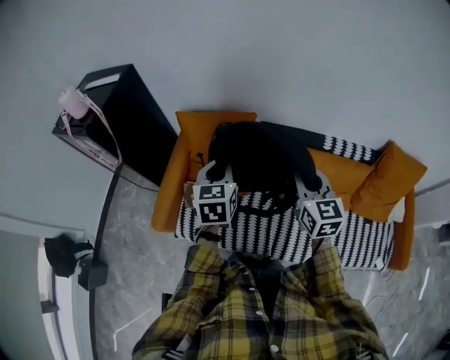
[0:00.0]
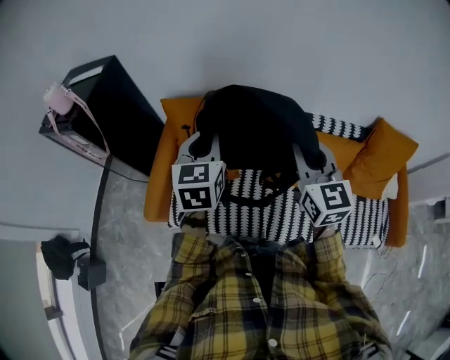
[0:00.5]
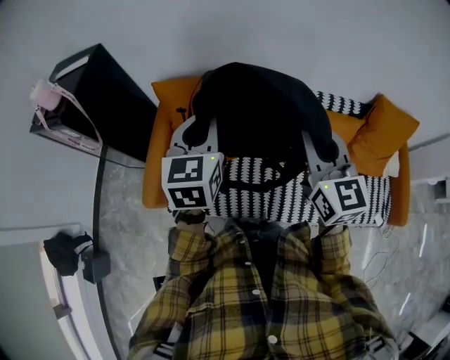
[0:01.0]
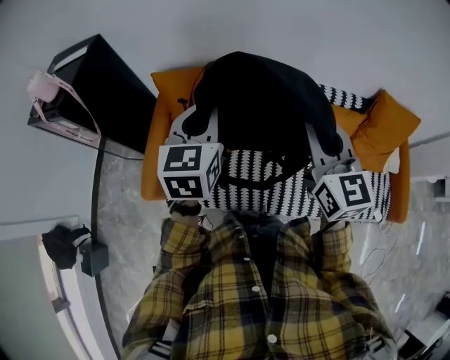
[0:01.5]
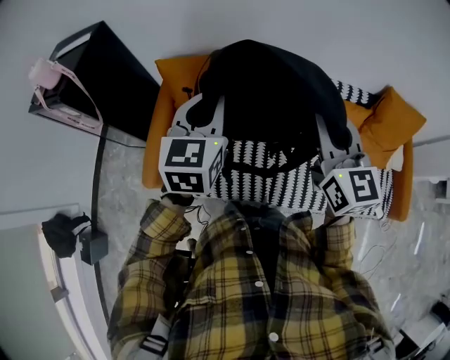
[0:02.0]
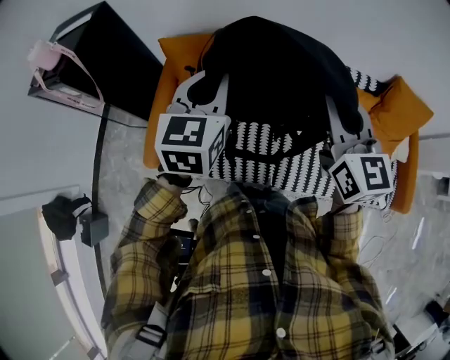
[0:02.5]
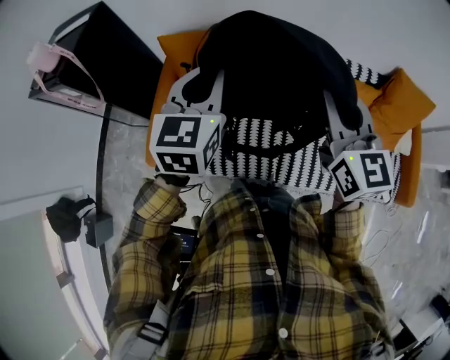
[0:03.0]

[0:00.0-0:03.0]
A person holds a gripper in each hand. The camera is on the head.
0:00.0 to 0:01.5: The right gripper heads upward and backward, covering some 10 cm. Meanwhile the left gripper is displaced upward by approximately 10 cm.
0:01.5 to 0:03.0: The grippers move only a little.

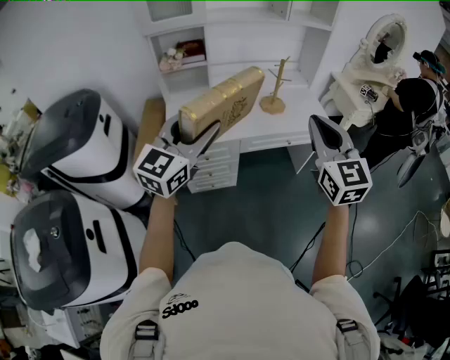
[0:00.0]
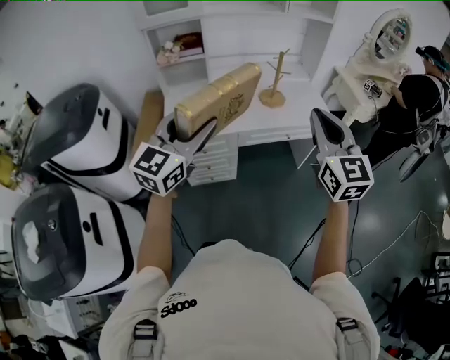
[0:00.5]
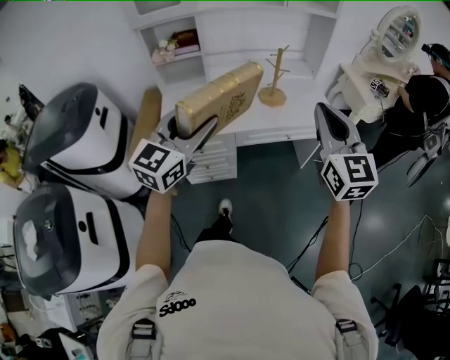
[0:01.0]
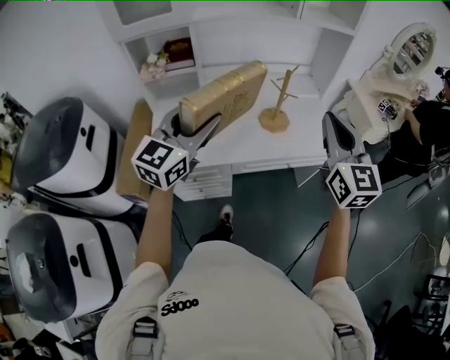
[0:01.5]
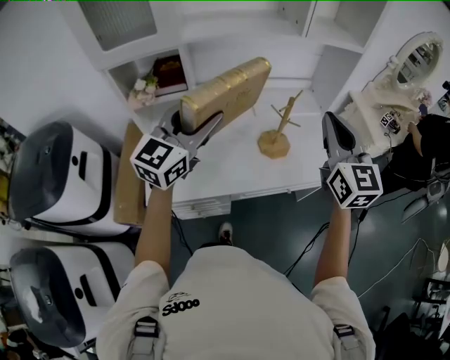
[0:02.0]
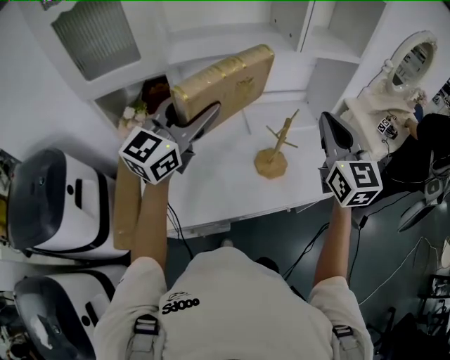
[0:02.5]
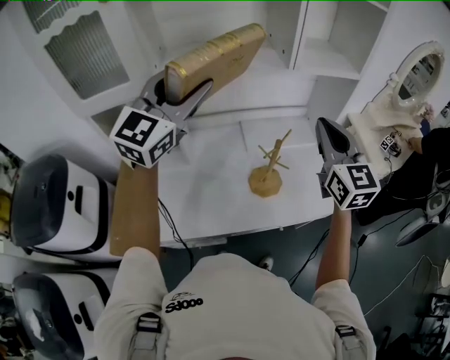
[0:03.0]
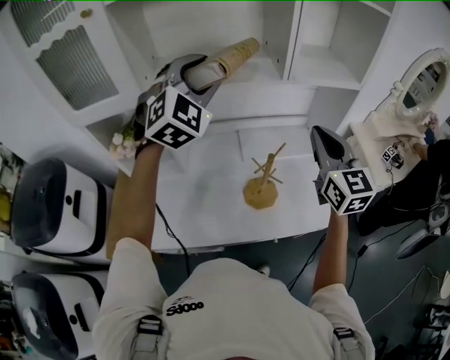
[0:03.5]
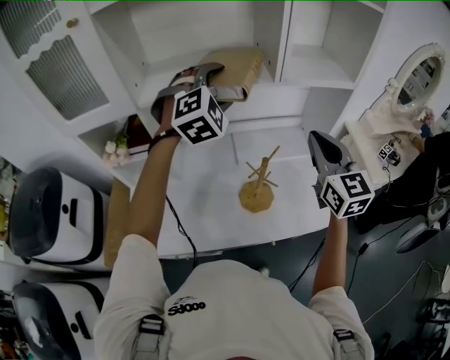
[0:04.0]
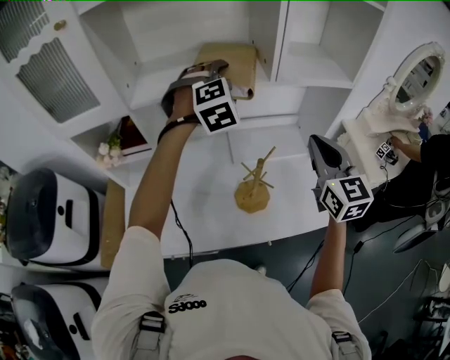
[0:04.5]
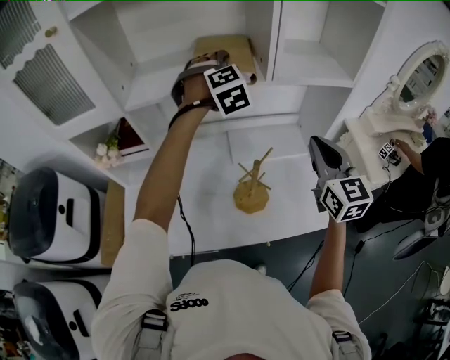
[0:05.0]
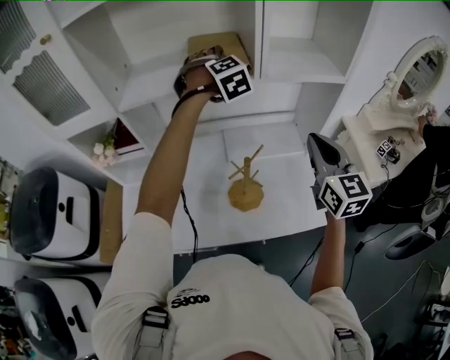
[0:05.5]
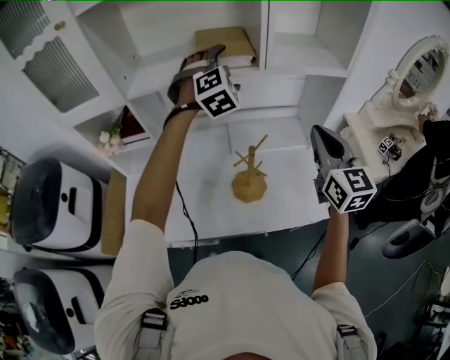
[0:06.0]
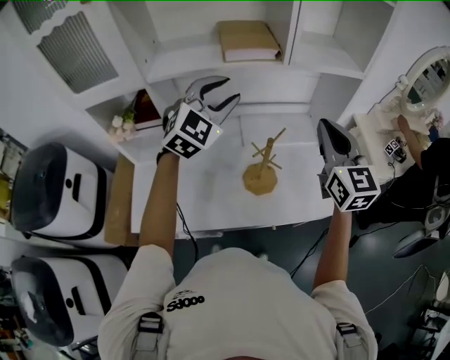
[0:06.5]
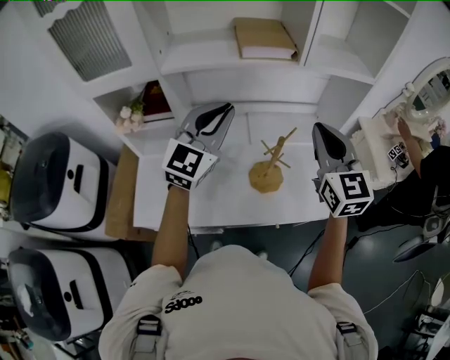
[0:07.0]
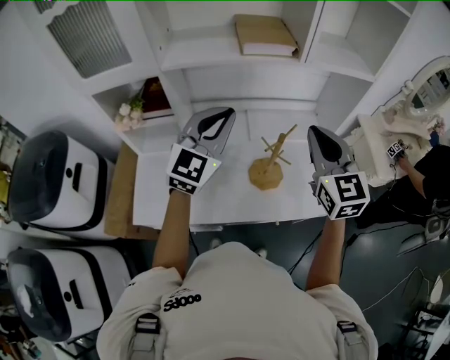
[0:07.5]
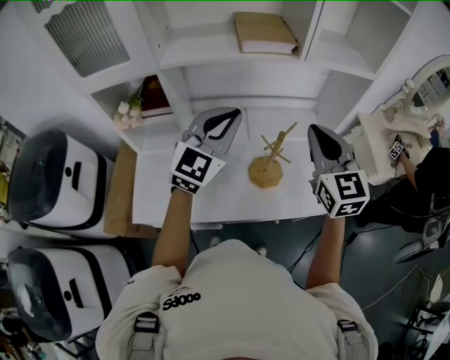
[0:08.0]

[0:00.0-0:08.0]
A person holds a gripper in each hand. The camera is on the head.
0:00.0 to 0:02.0: The two grippers go roughly 35 cm forward.
0:02.0 to 0:04.0: The right gripper heads forward, covering about 20 cm; the left gripper is displaced forward and to the right by some 30 cm, and twists approximately 50 degrees clockwise, seen from behind.
0:04.0 to 0:06.0: The left gripper shifts roughly 10 cm to the right and forward, while the right gripper moves approximately 5 cm.
0:06.0 to 0:08.0: The right gripper shifts about 10 cm to the left. The left gripper shifts about 20 cm backward and to the left, twists about 40 degrees counterclockwise, seen from behind, and closes.

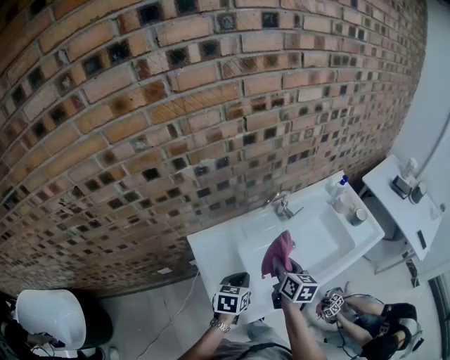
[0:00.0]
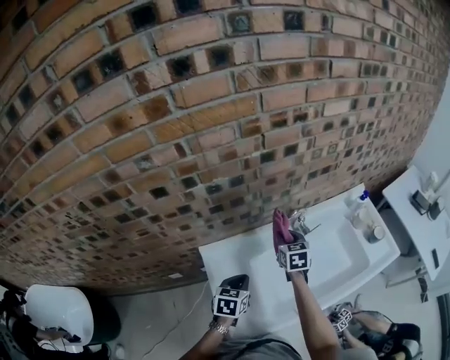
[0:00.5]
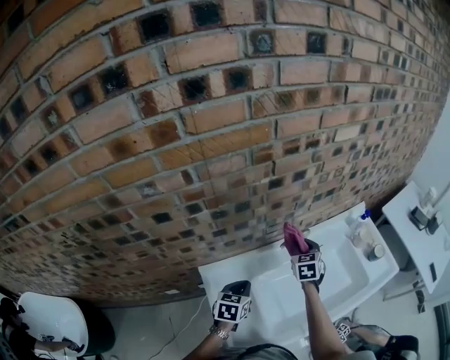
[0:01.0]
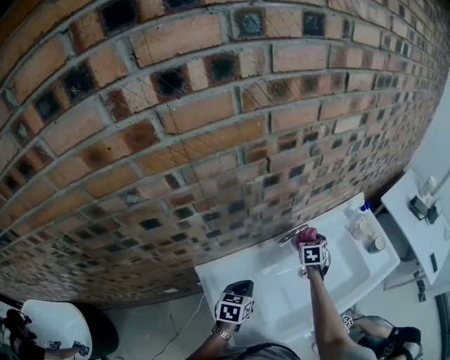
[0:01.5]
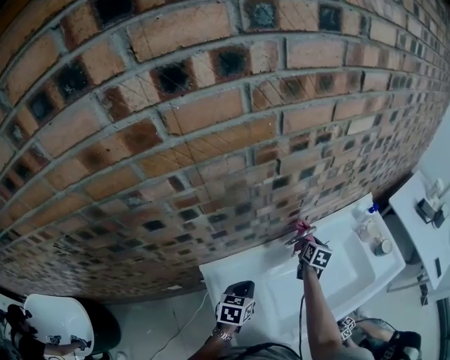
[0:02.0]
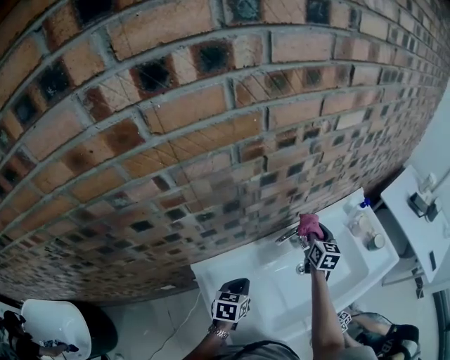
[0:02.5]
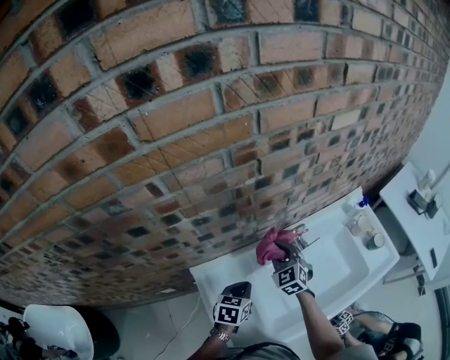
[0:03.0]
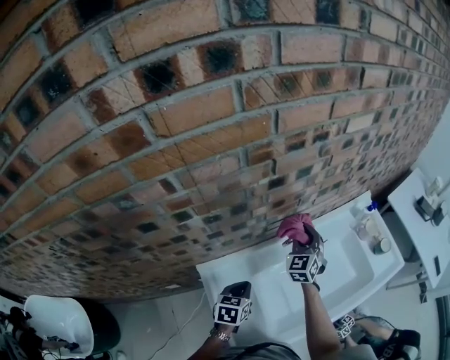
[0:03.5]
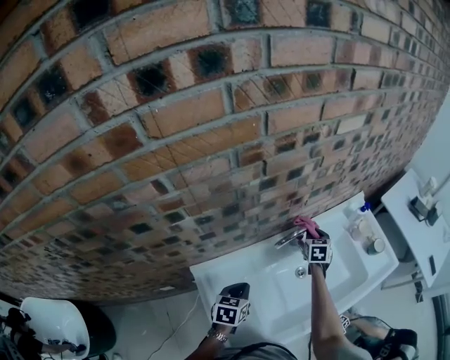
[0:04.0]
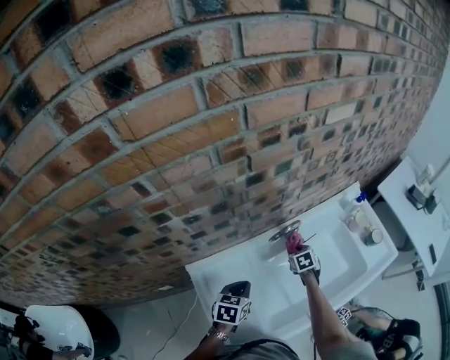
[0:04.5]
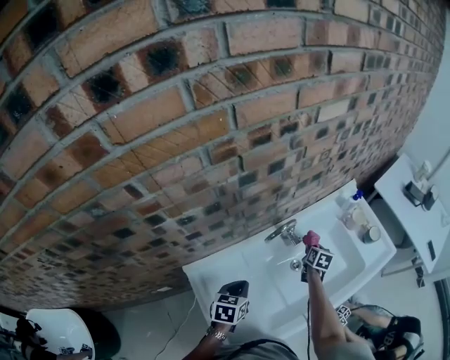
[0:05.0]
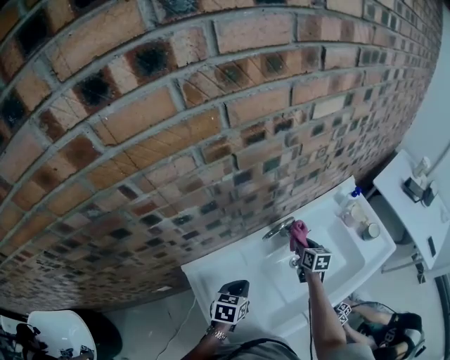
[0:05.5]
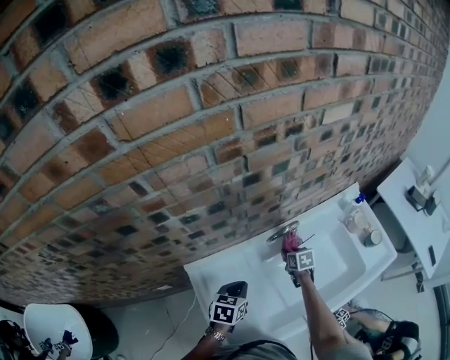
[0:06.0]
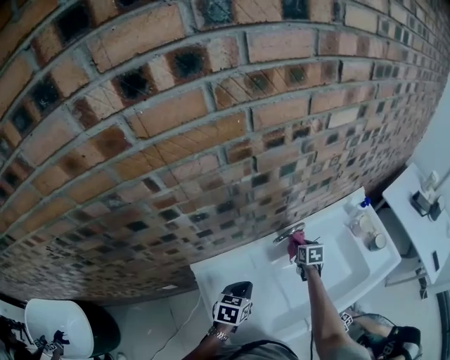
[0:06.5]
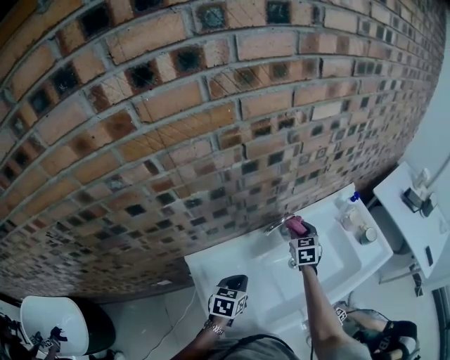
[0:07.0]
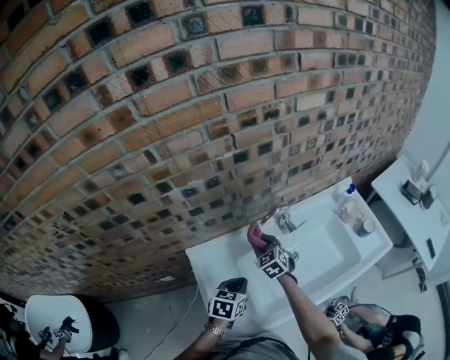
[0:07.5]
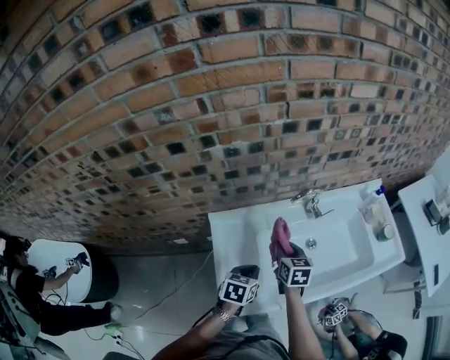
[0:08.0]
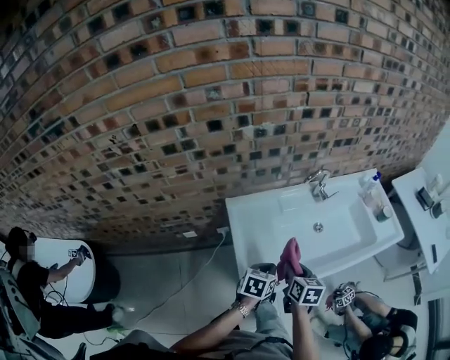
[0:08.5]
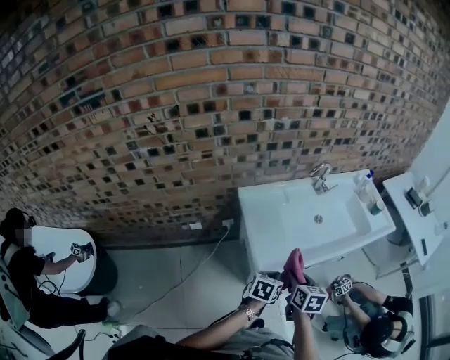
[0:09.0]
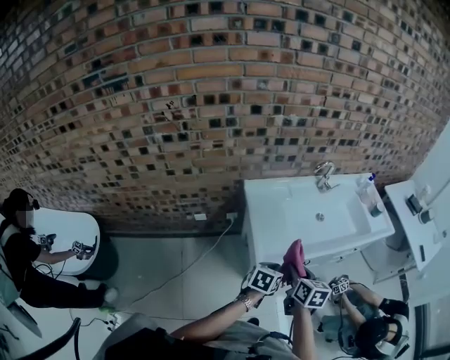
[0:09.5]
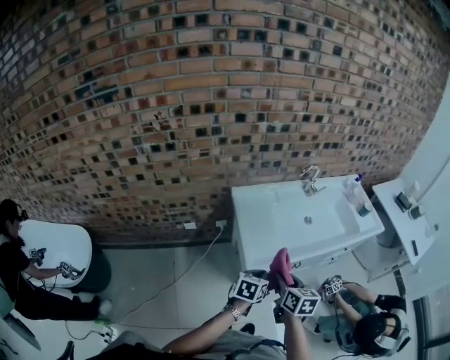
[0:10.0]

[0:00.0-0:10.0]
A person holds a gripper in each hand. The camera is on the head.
0:00.0 to 0:02.0: The right gripper is displaced forward by approximately 30 cm. The left gripper is displaced forward and to the left by about 15 cm.
0:02.0 to 0:04.0: The right gripper goes to the left and returns, approximately 10 cm each way, and rotates roughly 30 degrees.
0:04.0 to 0:06.0: The right gripper swings left and right, approximately 15 cm each way, with 2 reversals, and swivels approximately 30 degrees.
0:06.0 to 0:08.0: The right gripper travels backward, upward and to the left by roughly 25 cm. Meanwhile the left gripper heads backward, covering about 10 cm.
0:08.0 to 0:10.0: Both grippers travel together backward, approximately 35 cm.

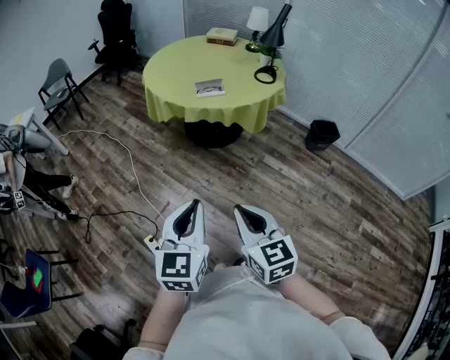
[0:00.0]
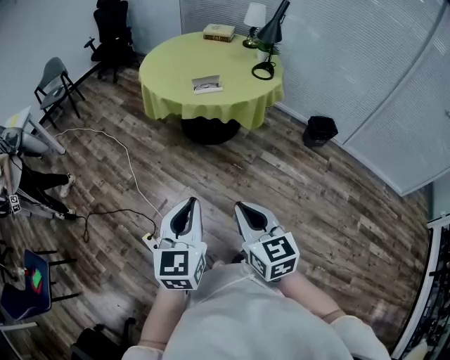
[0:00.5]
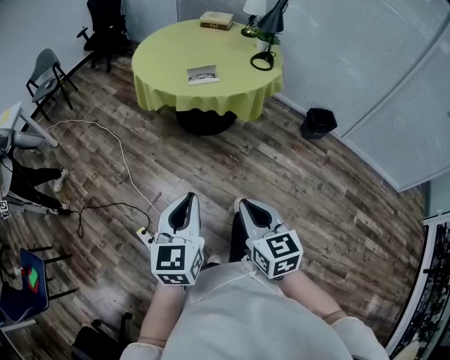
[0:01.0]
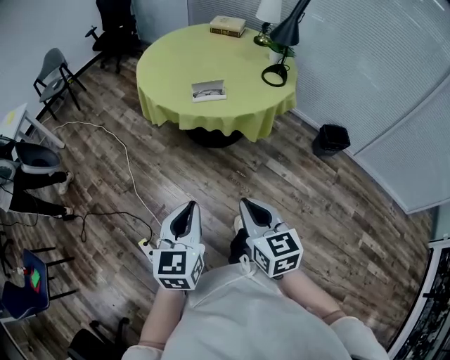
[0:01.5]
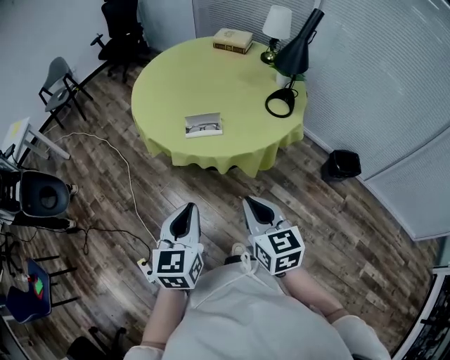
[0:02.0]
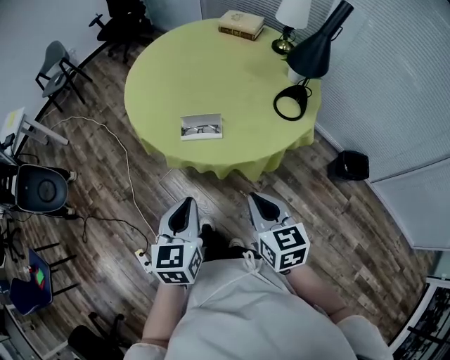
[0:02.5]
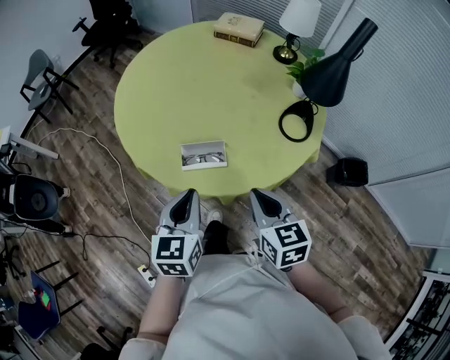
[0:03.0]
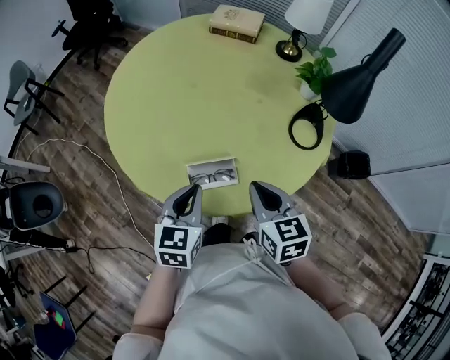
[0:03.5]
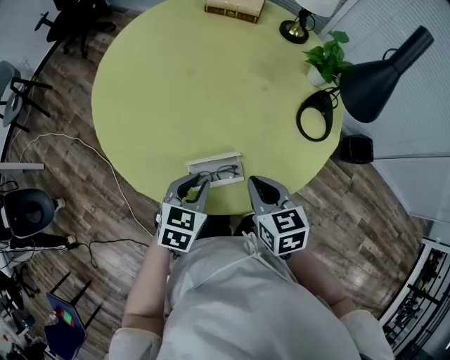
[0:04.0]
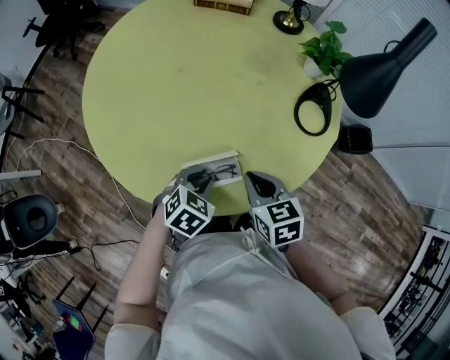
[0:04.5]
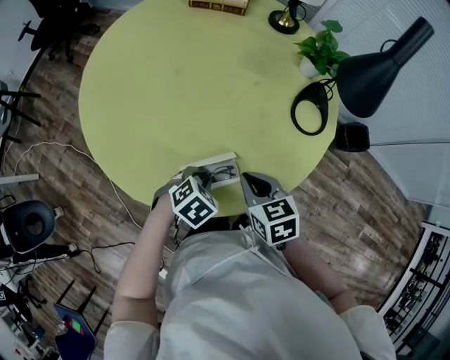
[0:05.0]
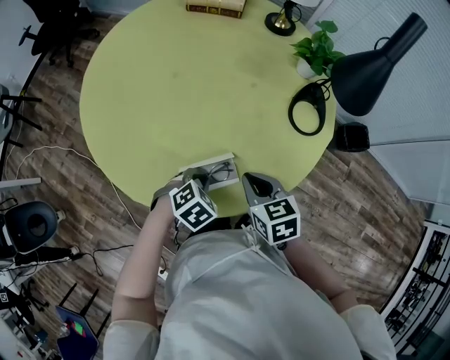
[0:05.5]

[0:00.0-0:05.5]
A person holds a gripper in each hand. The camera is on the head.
0:00.0 to 0:02.0: The right gripper is displaced forward and to the right by about 40 cm; the left gripper goes approximately 35 cm forward.
0:02.0 to 0:03.5: Both grippers move forward, about 40 cm.
0:03.5 to 0:05.5: The right gripper is displaced downward by some 10 cm; the left gripper heads downward, covering roughly 15 cm, and tilts its fingers about 40 degrees downward.
